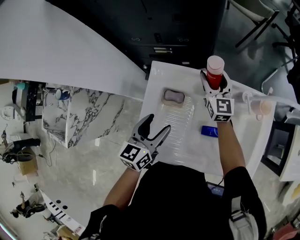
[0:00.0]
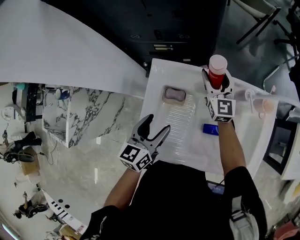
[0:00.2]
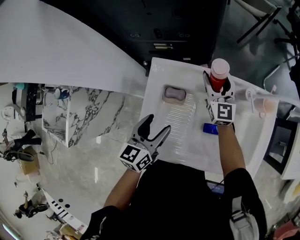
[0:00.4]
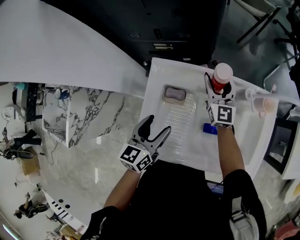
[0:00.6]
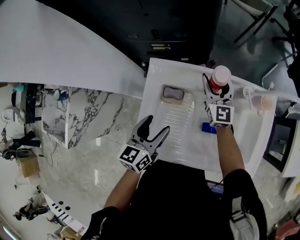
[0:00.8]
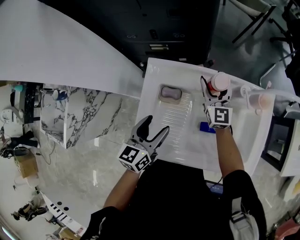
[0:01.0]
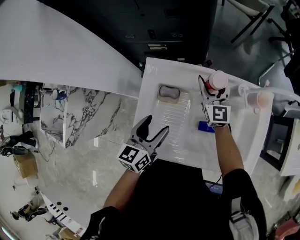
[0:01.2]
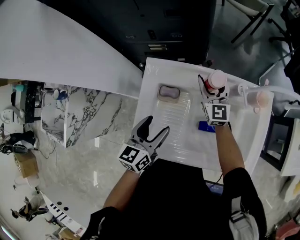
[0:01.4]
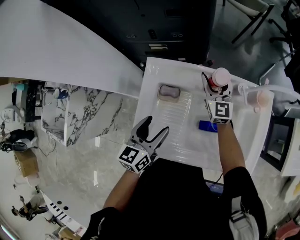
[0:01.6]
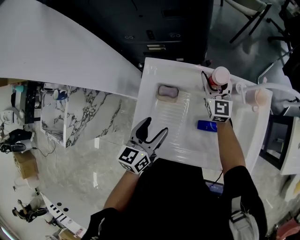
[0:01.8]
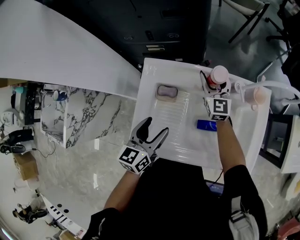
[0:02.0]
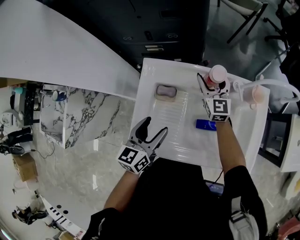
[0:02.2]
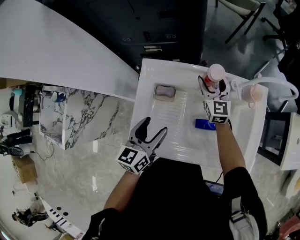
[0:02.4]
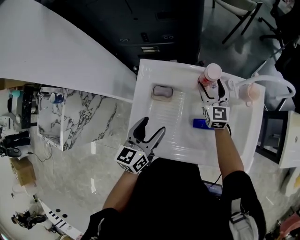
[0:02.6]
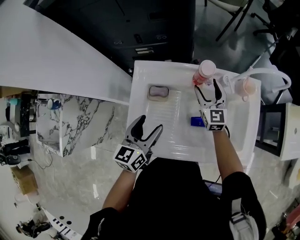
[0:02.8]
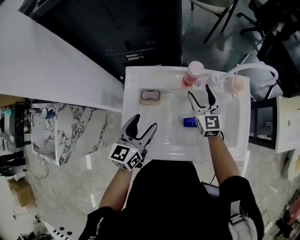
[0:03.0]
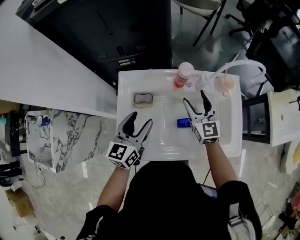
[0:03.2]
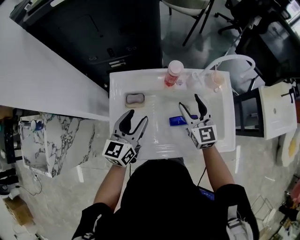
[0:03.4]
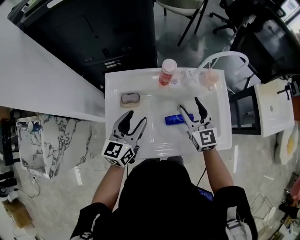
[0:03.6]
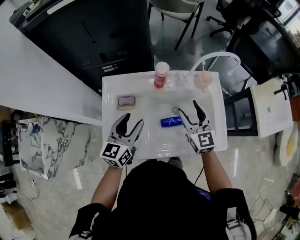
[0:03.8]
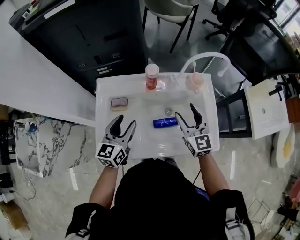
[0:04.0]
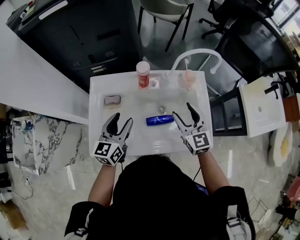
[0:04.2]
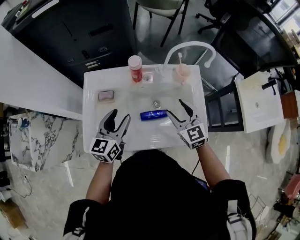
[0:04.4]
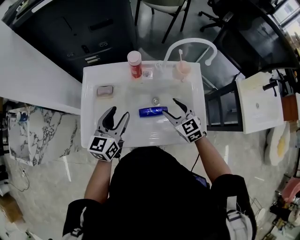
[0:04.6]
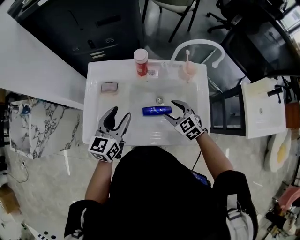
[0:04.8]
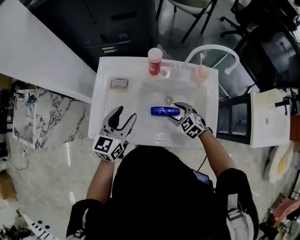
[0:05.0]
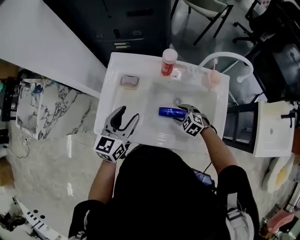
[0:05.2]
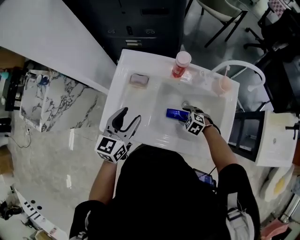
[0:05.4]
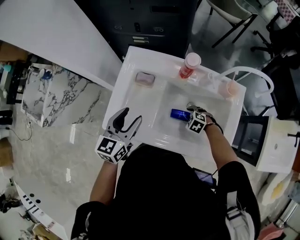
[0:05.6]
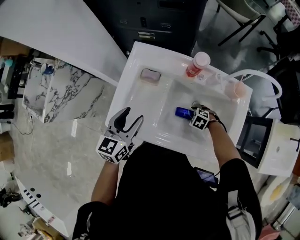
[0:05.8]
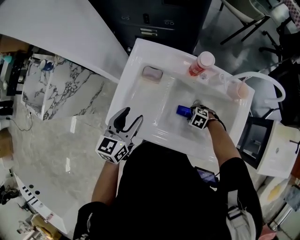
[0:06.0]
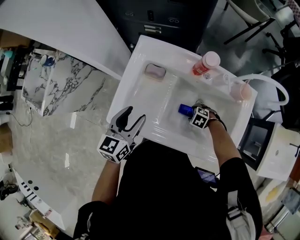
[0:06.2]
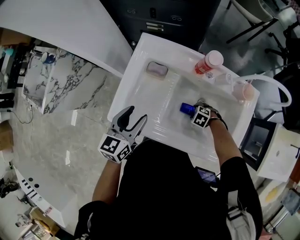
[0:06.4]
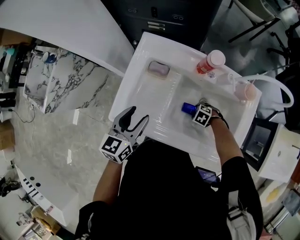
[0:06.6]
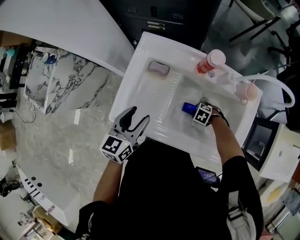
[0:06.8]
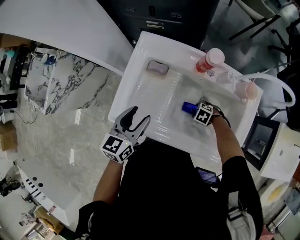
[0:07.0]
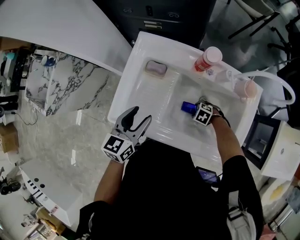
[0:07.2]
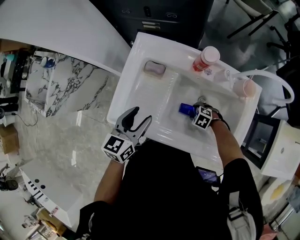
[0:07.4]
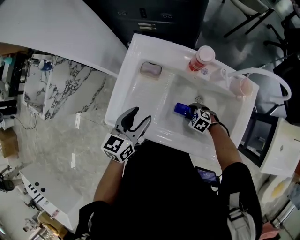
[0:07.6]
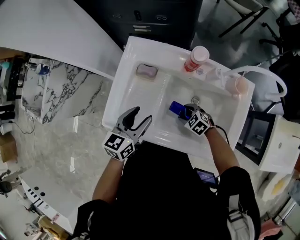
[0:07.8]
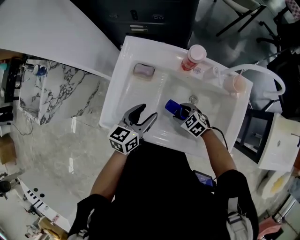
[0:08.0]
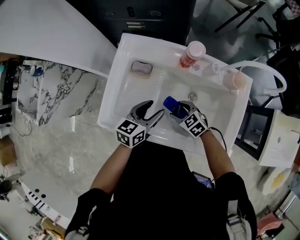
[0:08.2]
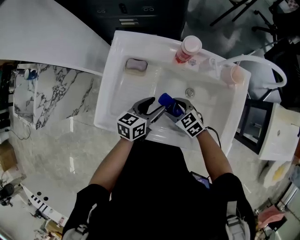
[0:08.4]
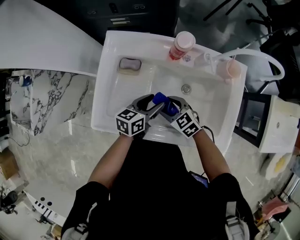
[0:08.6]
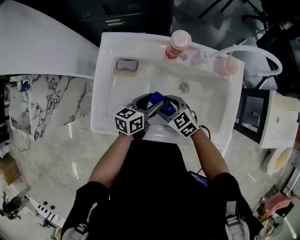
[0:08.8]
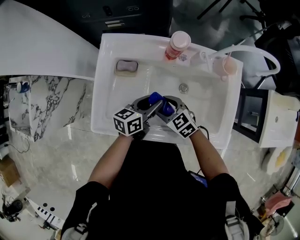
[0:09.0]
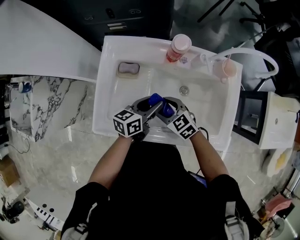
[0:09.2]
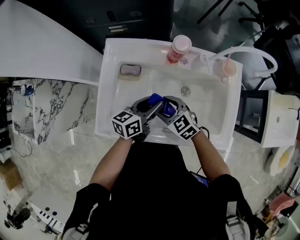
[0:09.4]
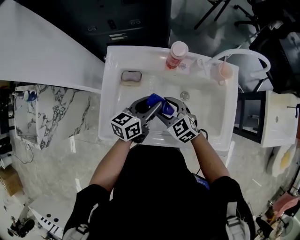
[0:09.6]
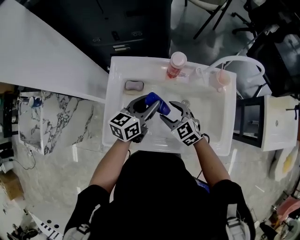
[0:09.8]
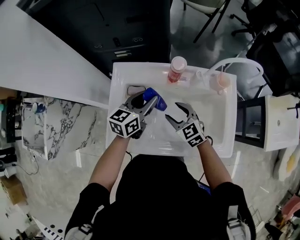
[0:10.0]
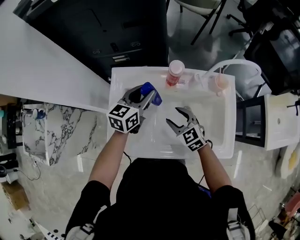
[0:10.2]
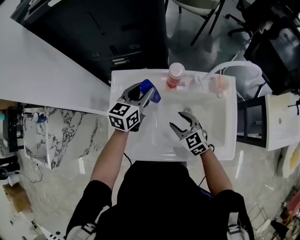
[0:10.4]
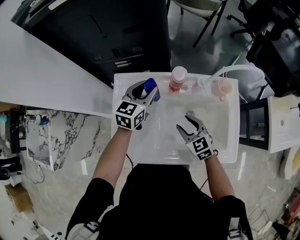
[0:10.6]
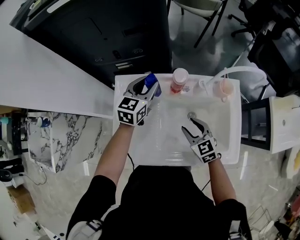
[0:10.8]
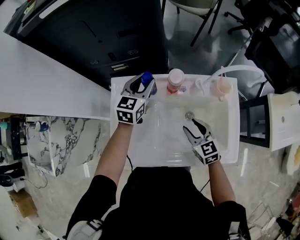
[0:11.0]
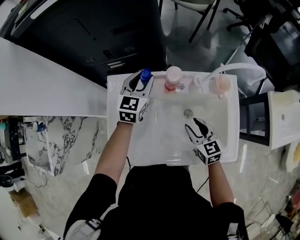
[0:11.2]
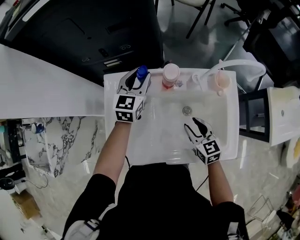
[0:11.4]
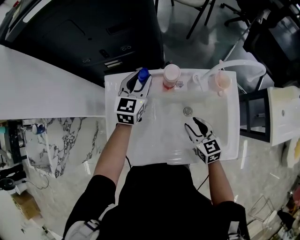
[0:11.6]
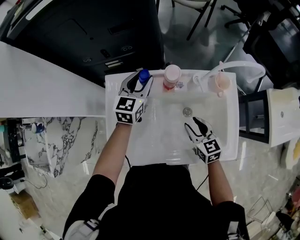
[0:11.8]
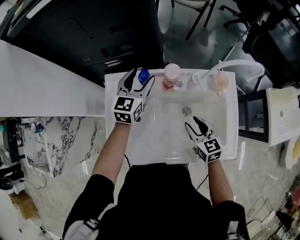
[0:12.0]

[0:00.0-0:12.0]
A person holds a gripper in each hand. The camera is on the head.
0:00.0 to 0:01.6: The grippers stay close to where they were, moving slightly.
0:01.6 to 0:03.0: The right gripper is displaced backward by about 10 cm.
0:03.0 to 0:04.4: The left gripper travels to the right by about 10 cm. Meanwhile the right gripper heads to the right and backward, covering about 20 cm.
0:04.4 to 0:06.0: The right gripper heads downward, covering about 30 cm, and tips its fingers downward by about 60 degrees. Meanwhile the left gripper ends up some 10 cm from where it was.
0:06.0 to 0:07.6: The grippers make only small movements.
0:07.6 to 0:09.0: The left gripper shifts by about 15 cm, and turns by roughly 30 degrees. Meanwhile the right gripper is displaced upward by roughly 10 cm, and rotates about 40 degrees.
0:09.0 to 0:10.4: The left gripper goes some 20 cm forward and upward, and swivels roughly 30 degrees, while the right gripper is displaced upward by about 5 cm, and turns by approximately 20 degrees.
0:10.4 to 0:12.0: The right gripper travels to the right by about 10 cm, and turns by about 20 degrees, while the left gripper heads forward, covering some 5 cm, and opens.

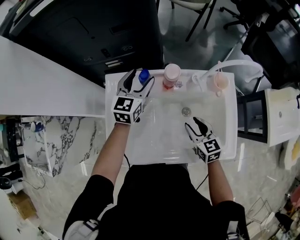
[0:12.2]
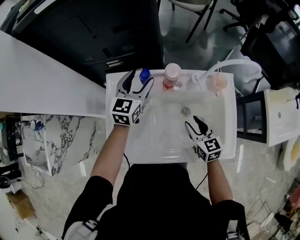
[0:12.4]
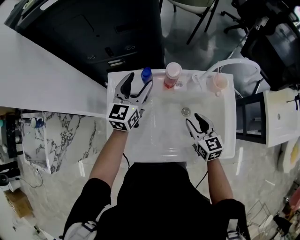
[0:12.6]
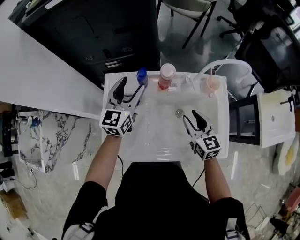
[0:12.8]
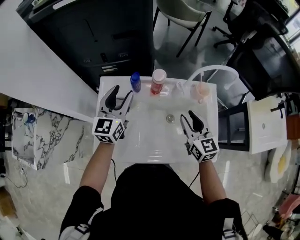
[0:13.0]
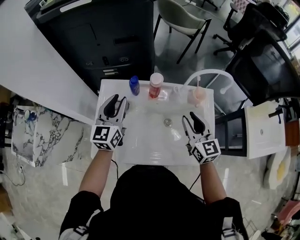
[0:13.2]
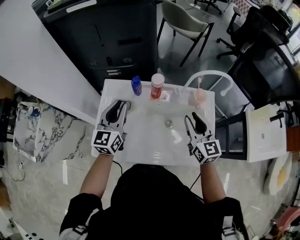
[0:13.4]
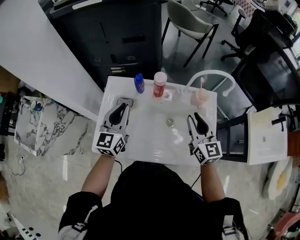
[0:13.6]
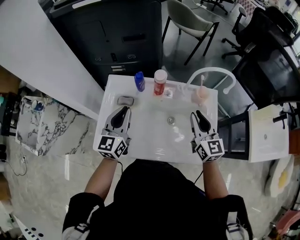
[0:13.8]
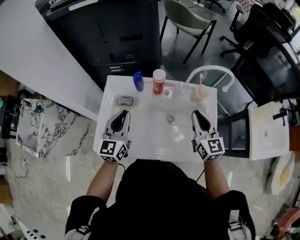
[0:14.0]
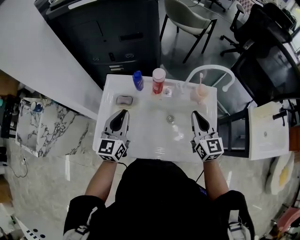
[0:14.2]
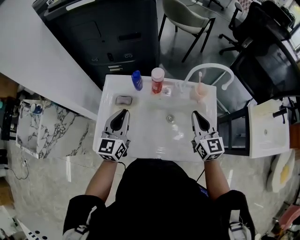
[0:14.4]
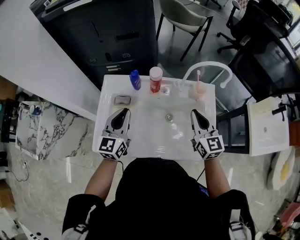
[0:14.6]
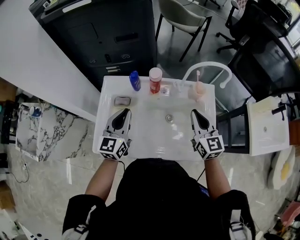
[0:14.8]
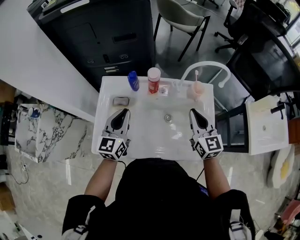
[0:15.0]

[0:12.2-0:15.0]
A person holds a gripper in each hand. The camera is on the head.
0:12.2 to 0:13.6: The right gripper goes roughly 15 cm upward and to the right, and changes its angle by roughly 30 degrees; the left gripper heads backward and upward, covering approximately 20 cm, and closes up.
0:13.6 to 0:15.0: The grippers stay close to where they were, moving slightly.

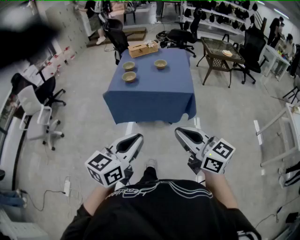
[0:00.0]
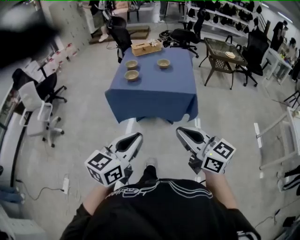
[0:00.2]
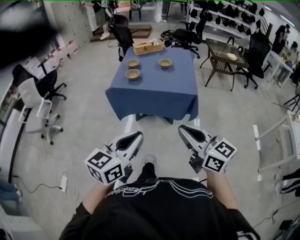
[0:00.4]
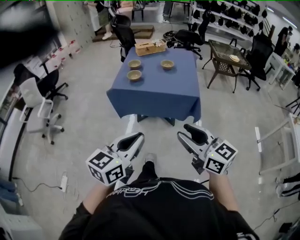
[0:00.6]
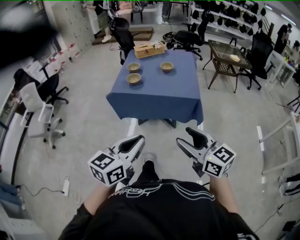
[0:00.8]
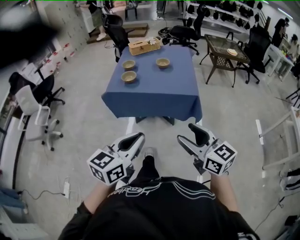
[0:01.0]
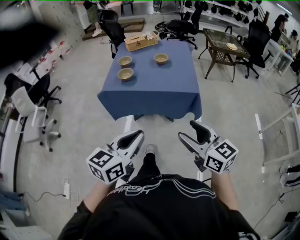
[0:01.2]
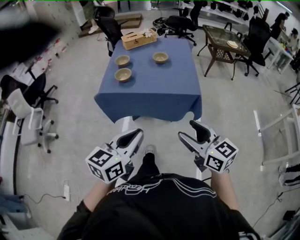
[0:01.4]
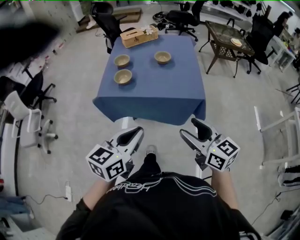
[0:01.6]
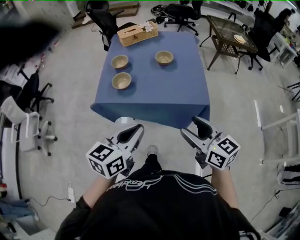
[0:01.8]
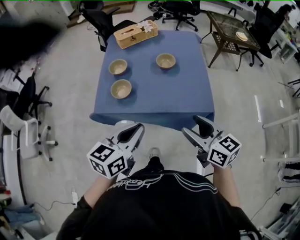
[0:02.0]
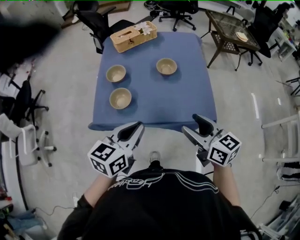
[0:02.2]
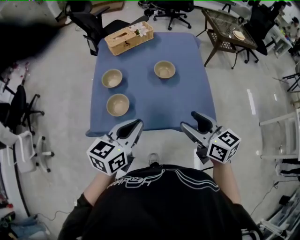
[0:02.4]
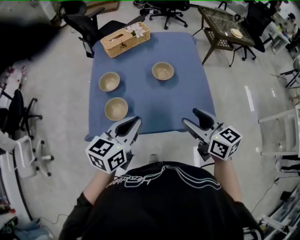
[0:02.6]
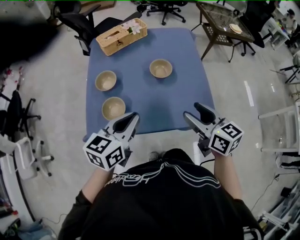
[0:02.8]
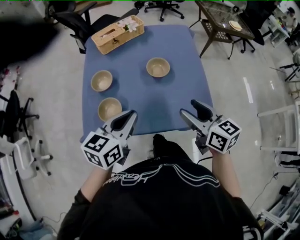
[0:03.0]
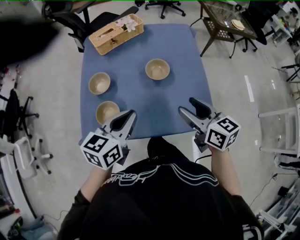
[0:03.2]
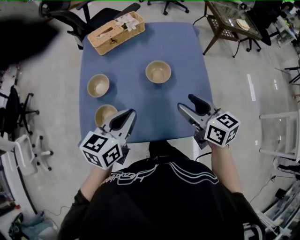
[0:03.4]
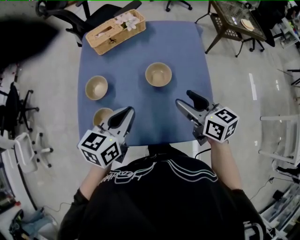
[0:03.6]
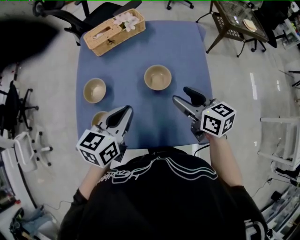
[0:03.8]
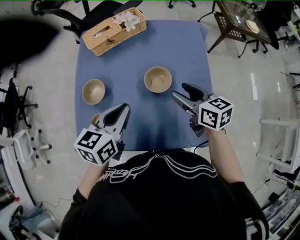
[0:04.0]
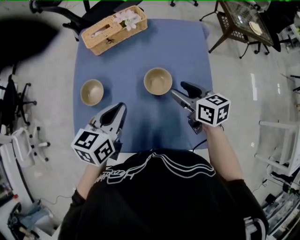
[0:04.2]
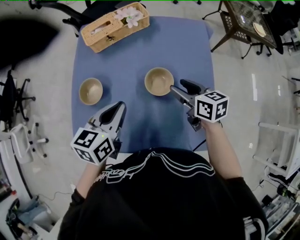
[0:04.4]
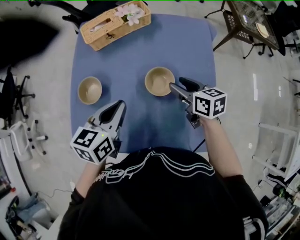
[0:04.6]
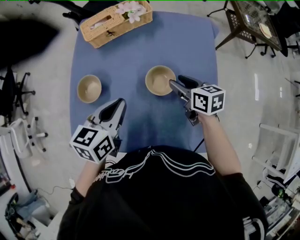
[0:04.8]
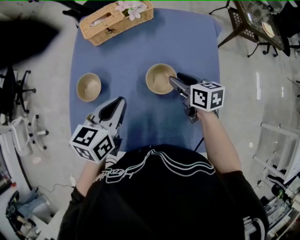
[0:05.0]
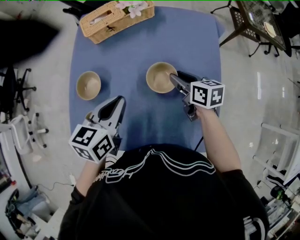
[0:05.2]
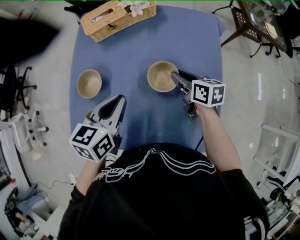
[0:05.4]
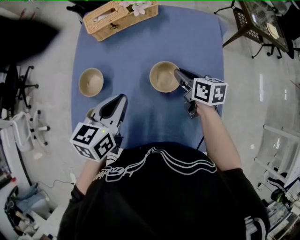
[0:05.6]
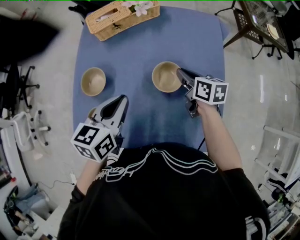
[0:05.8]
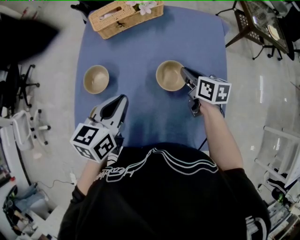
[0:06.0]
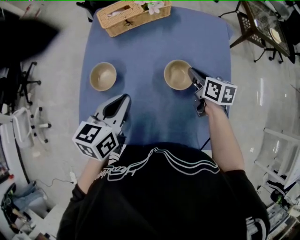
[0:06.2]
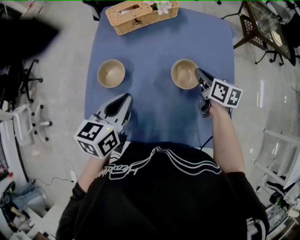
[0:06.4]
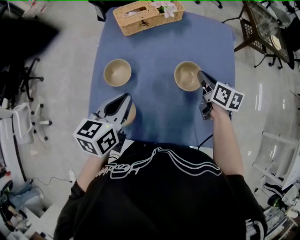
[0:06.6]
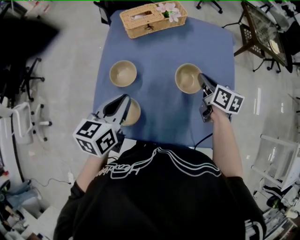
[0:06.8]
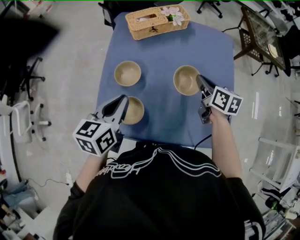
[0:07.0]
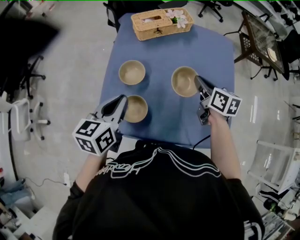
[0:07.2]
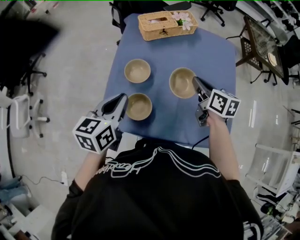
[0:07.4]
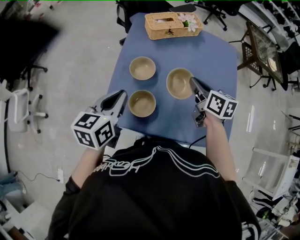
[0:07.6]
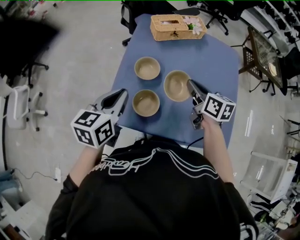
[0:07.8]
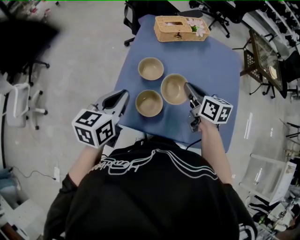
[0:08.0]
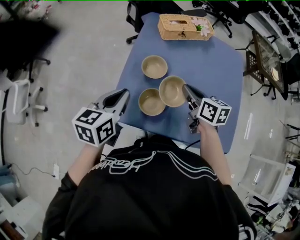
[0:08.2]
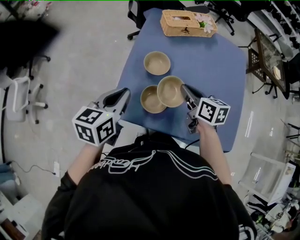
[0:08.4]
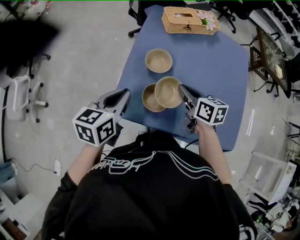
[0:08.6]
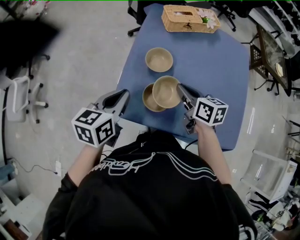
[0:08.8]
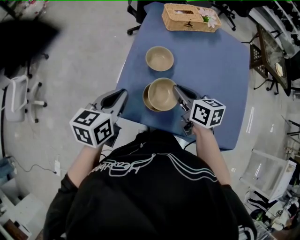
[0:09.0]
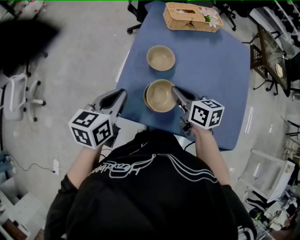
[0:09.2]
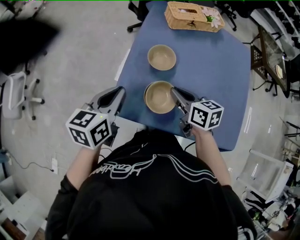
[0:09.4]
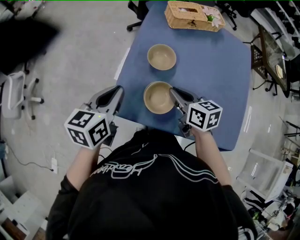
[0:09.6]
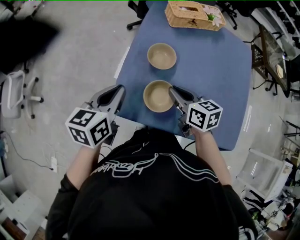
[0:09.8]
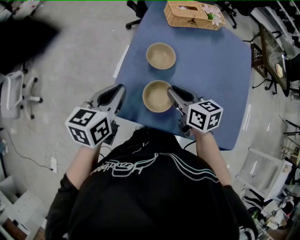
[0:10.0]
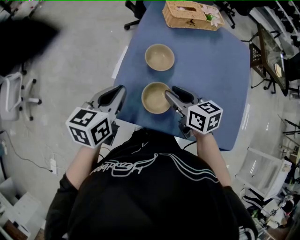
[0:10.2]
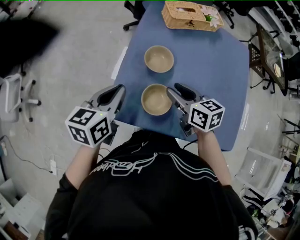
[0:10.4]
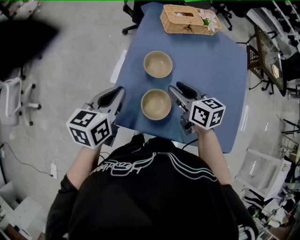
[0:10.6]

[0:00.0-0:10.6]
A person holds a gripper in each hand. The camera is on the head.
0:00.0 to 0:01.6: Both grippers travel together forward, roughly 25 cm. The right gripper opens its fingers.
0:01.6 to 0:03.0: Both grippers travel together forward, approximately 35 cm.
0:03.0 to 0:04.6: The left gripper travels forward by approximately 20 cm; the right gripper goes approximately 30 cm forward and downward.
0:04.6 to 0:06.0: The right gripper ends up approximately 5 cm from where it was, and closes up.
0:06.0 to 0:07.6: The left gripper shifts some 20 cm to the left. Meanwhile the right gripper shifts approximately 20 cm to the left, upward and backward.
0:07.6 to 0:09.0: The left gripper shifts approximately 10 cm to the left and downward, while the right gripper is displaced to the left and downward by roughly 15 cm.
0:09.0 to 0:10.6: The right gripper opens.
